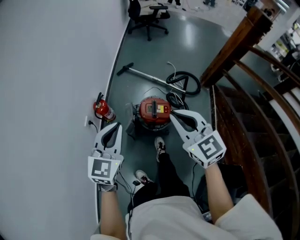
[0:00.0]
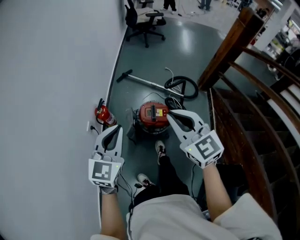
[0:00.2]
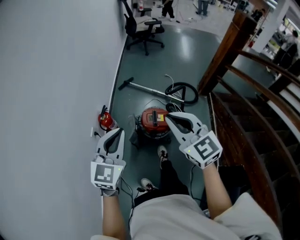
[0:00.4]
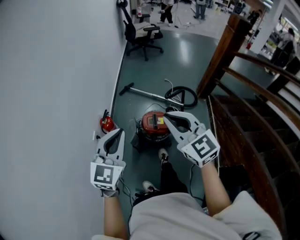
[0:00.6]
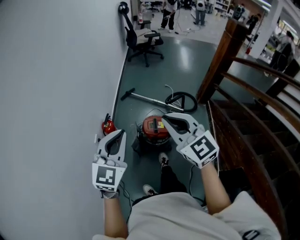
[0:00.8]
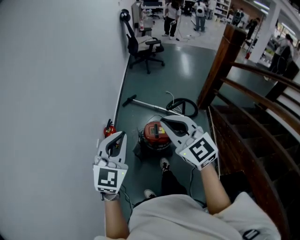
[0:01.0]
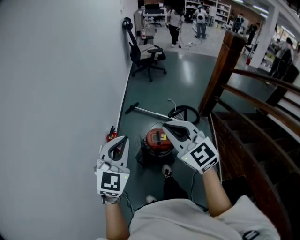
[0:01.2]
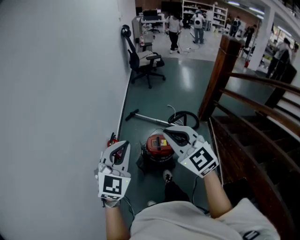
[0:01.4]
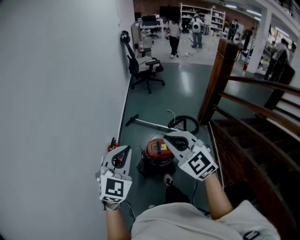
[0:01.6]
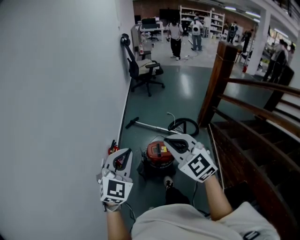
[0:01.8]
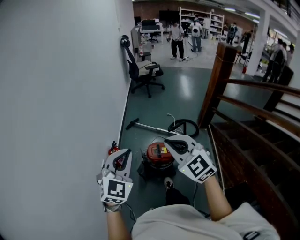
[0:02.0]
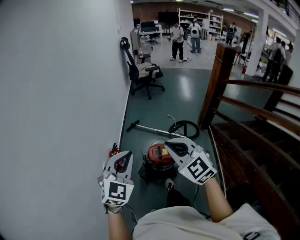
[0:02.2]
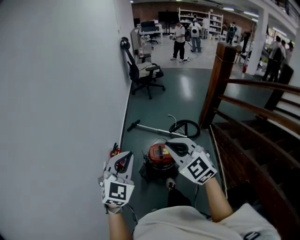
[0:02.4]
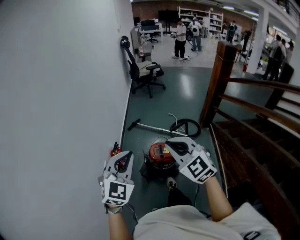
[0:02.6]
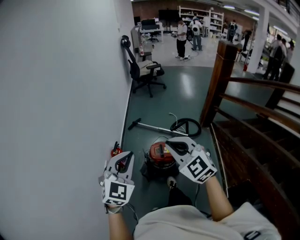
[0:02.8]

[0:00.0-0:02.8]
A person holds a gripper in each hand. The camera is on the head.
0:00.0 to 0:01.4: The grippers both shift upward and backward by roughly 20 cm. The left gripper swivels roughly 30 degrees.
0:01.4 to 0:02.8: The grippers make only small movements.

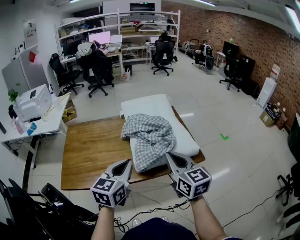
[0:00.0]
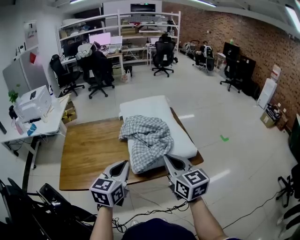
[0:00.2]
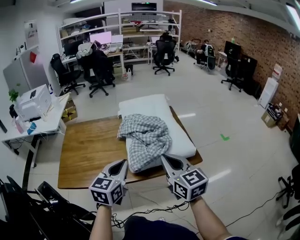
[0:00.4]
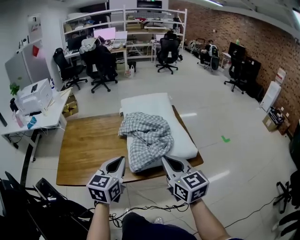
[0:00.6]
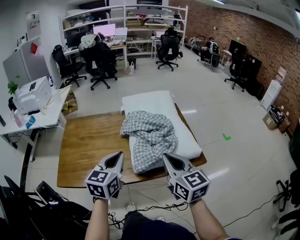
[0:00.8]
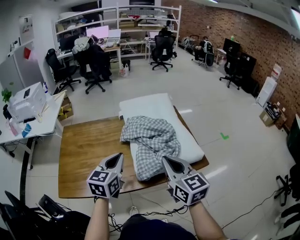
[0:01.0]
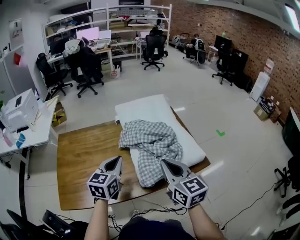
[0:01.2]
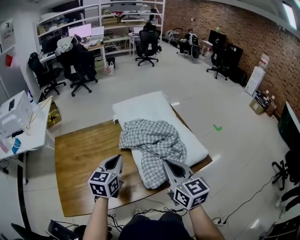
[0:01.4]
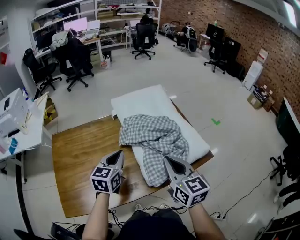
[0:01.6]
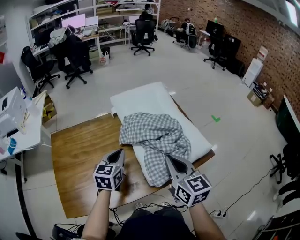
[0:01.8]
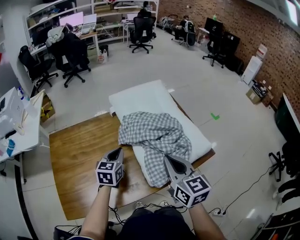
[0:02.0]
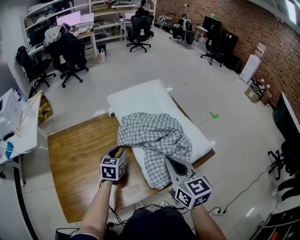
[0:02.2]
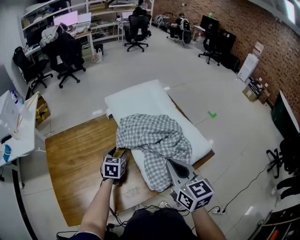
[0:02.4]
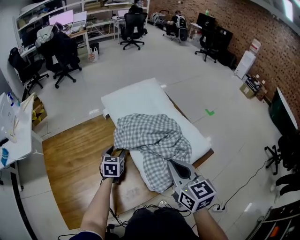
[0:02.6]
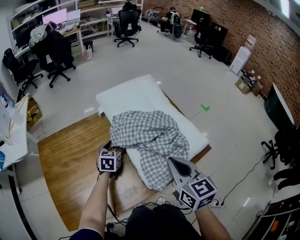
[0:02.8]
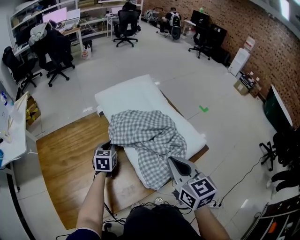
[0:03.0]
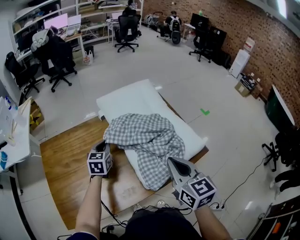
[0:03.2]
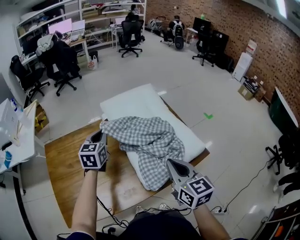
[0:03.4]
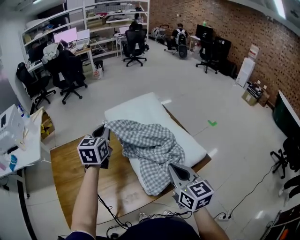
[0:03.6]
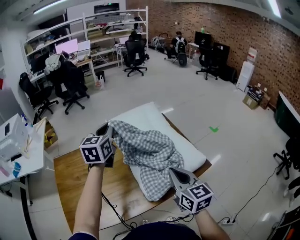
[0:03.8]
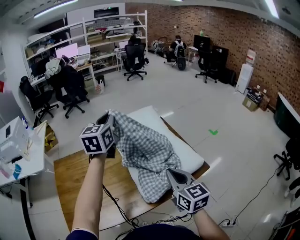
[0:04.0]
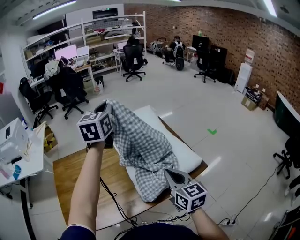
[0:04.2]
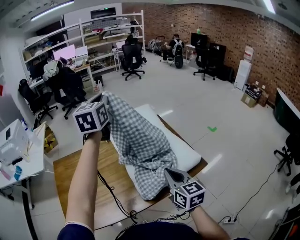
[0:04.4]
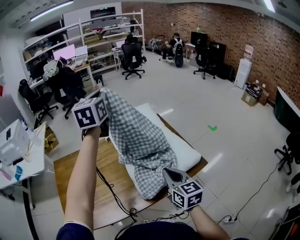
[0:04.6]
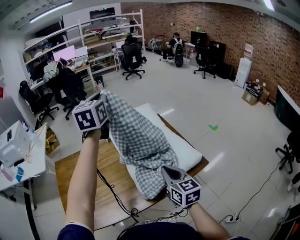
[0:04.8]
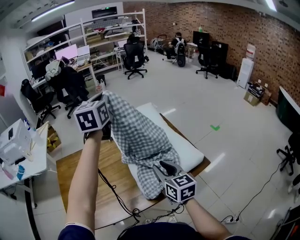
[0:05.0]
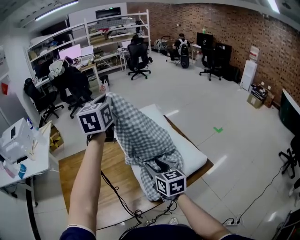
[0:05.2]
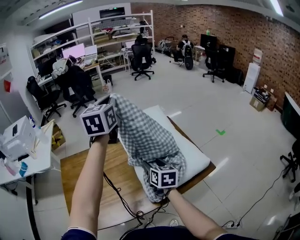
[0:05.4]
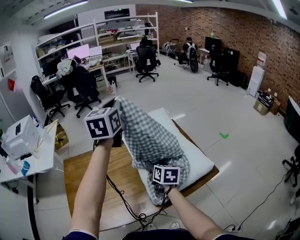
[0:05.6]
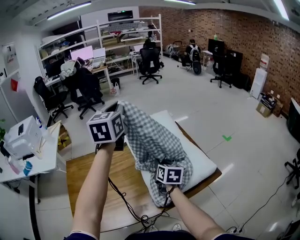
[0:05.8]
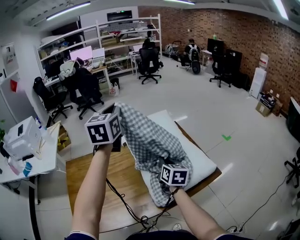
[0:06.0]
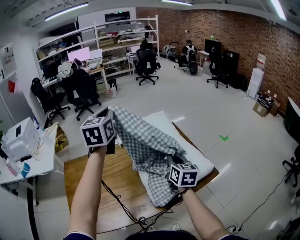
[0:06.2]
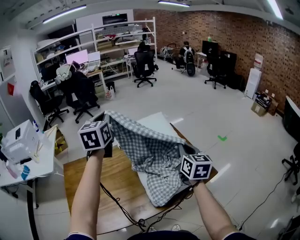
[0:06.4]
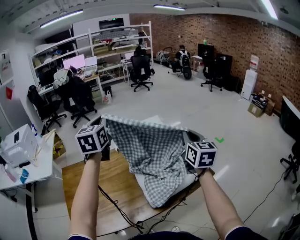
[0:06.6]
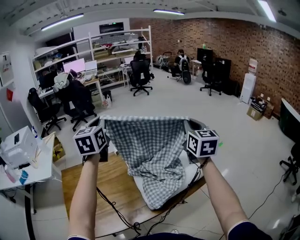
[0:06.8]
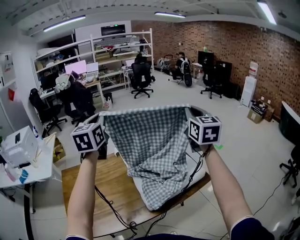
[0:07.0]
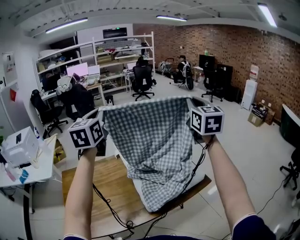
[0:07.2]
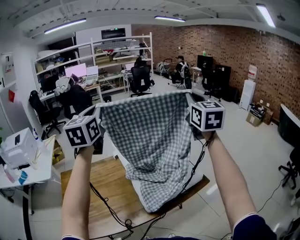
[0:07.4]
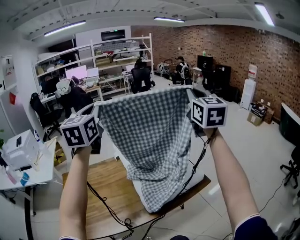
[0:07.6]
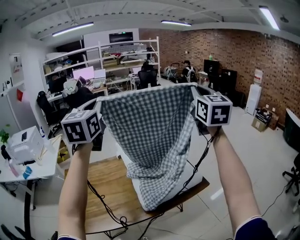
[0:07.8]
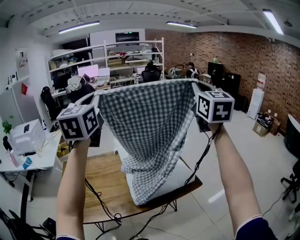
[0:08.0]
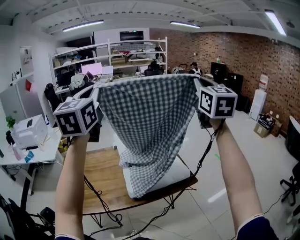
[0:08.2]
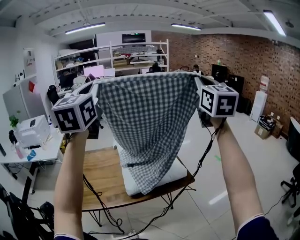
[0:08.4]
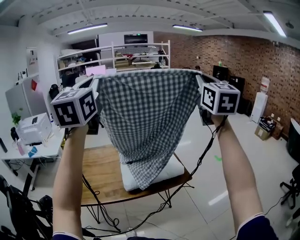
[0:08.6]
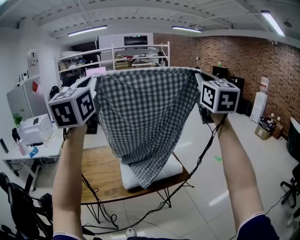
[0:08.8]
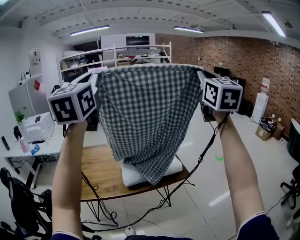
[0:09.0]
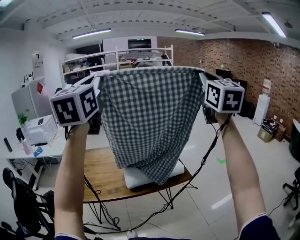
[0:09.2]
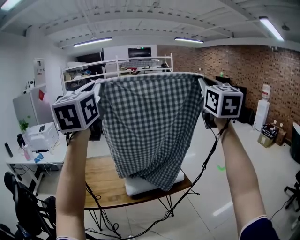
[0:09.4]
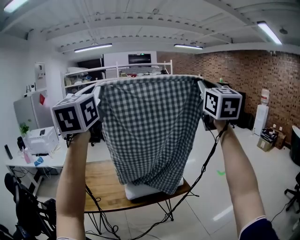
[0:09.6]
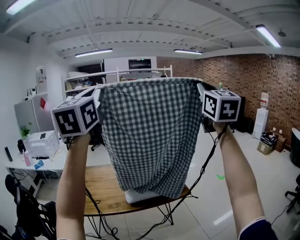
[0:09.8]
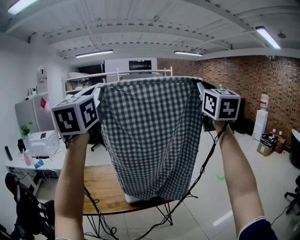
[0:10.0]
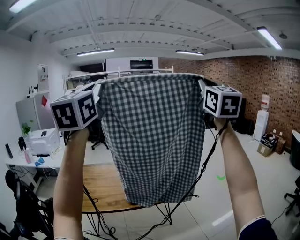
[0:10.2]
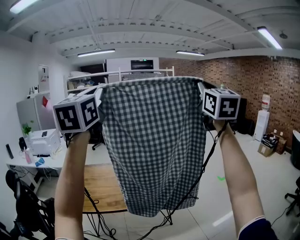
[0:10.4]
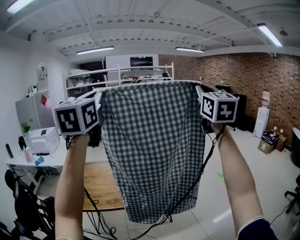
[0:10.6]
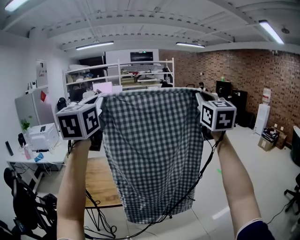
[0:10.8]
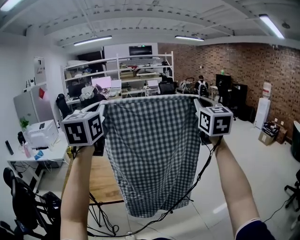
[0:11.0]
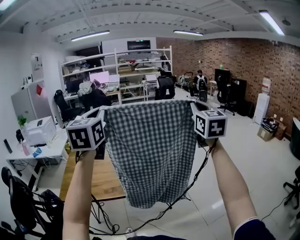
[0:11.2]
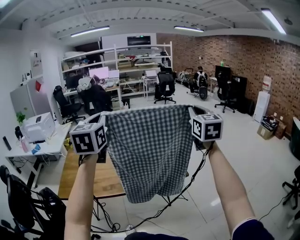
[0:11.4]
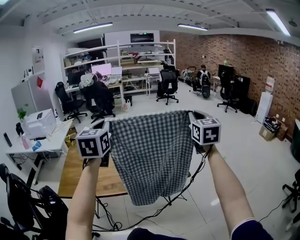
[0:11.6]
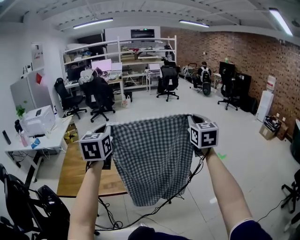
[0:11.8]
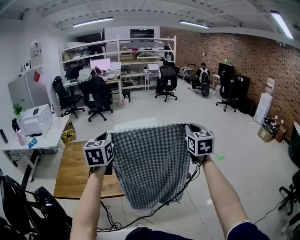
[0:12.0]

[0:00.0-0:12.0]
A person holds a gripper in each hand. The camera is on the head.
0:00.0 to 0:01.6: The right gripper heads forward and to the left, covering about 10 cm. The left gripper travels forward, downward and to the left by about 20 cm.
0:01.6 to 0:03.0: The left gripper is displaced downward and forward by some 20 cm, and opens, then closes again.
0:03.0 to 0:04.4: The left gripper shifts approximately 40 cm upward, and angles its fingers upward, by about 30 degrees.
0:04.4 to 0:06.0: The right gripper shifts some 15 cm forward, and opens, then closes again.
0:06.0 to 0:07.6: The right gripper goes roughly 40 cm upward and to the right, and tips its fingers upward by approximately 30 degrees. The left gripper shifts roughly 15 cm upward and backward.
0:07.6 to 0:09.0: The left gripper moves backward, upward and to the right, roughly 30 cm; the right gripper is displaced backward, to the right and upward by about 25 cm.
0:09.0 to 0:10.4: The right gripper travels upward by about 5 cm. Meanwhile the left gripper heads backward, covering roughly 5 cm.
0:10.4 to 0:12.0: The two grippers go roughly 40 cm downward and forward. The right gripper changes its angle by approximately 30 degrees; the left gripper turns by some 30 degrees.

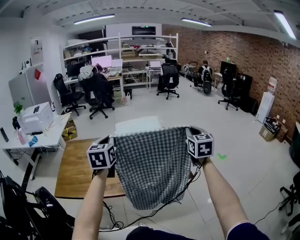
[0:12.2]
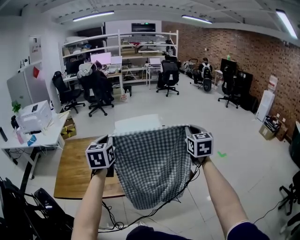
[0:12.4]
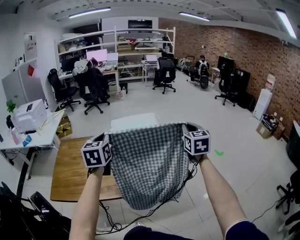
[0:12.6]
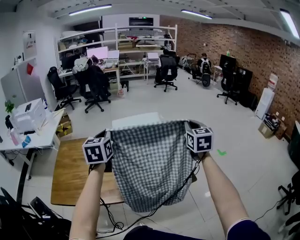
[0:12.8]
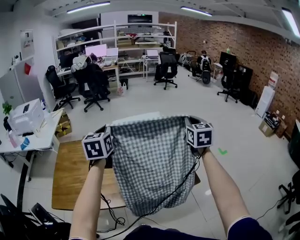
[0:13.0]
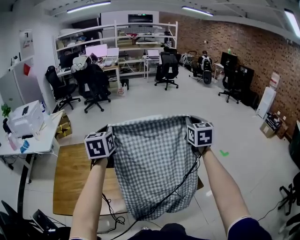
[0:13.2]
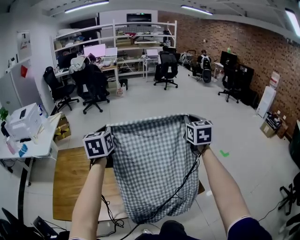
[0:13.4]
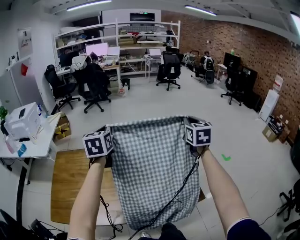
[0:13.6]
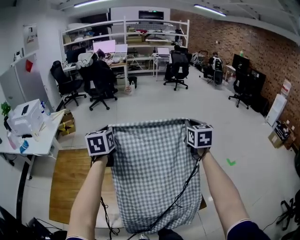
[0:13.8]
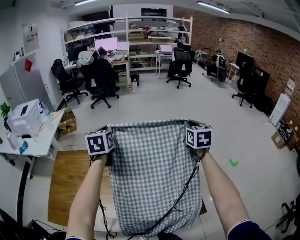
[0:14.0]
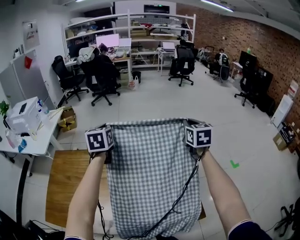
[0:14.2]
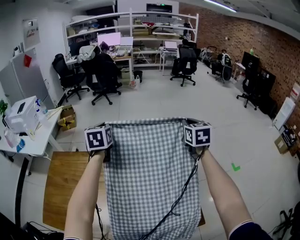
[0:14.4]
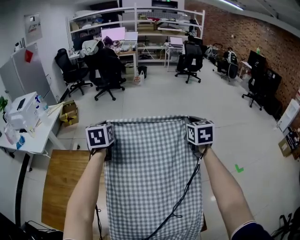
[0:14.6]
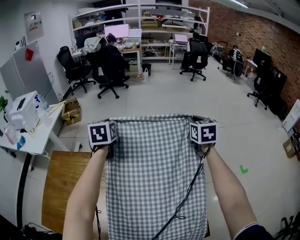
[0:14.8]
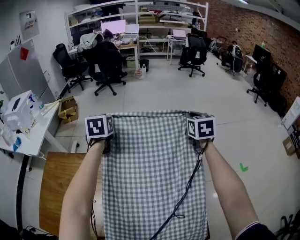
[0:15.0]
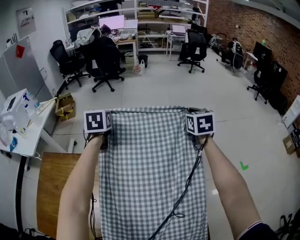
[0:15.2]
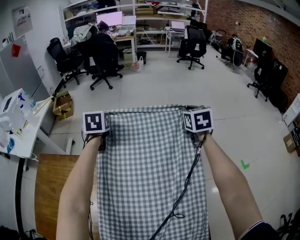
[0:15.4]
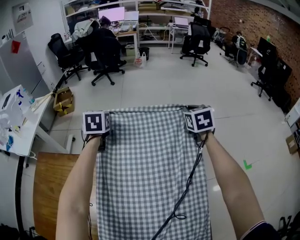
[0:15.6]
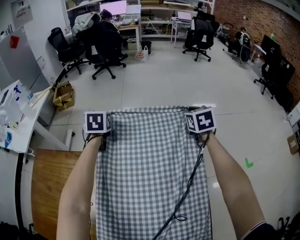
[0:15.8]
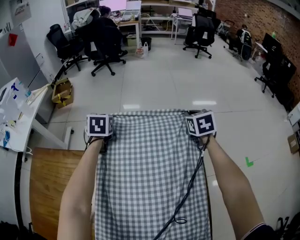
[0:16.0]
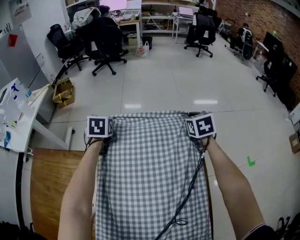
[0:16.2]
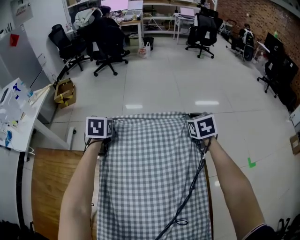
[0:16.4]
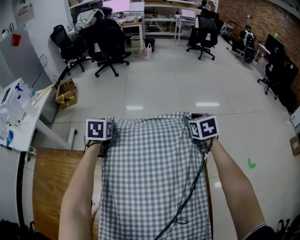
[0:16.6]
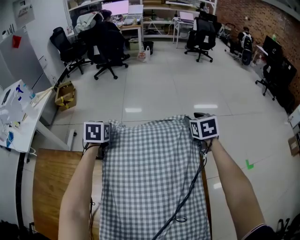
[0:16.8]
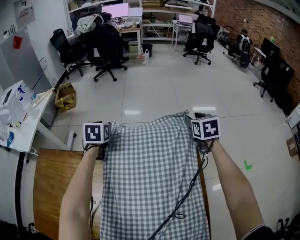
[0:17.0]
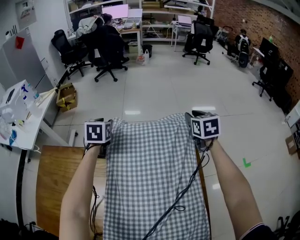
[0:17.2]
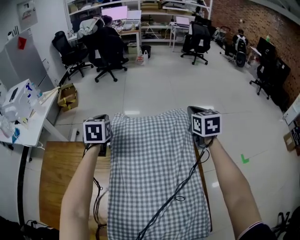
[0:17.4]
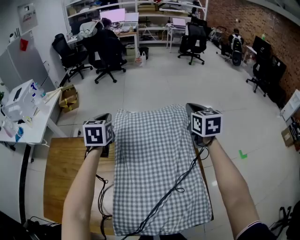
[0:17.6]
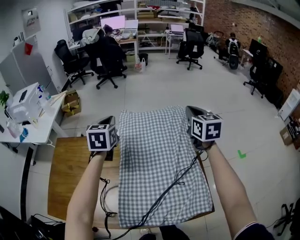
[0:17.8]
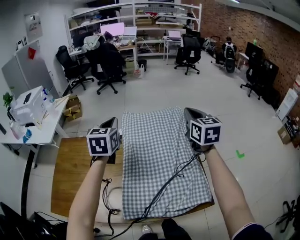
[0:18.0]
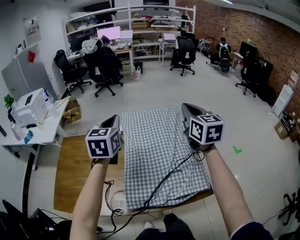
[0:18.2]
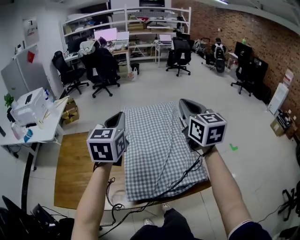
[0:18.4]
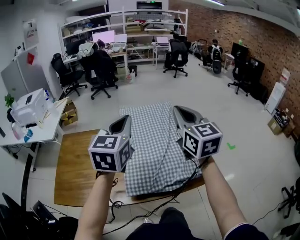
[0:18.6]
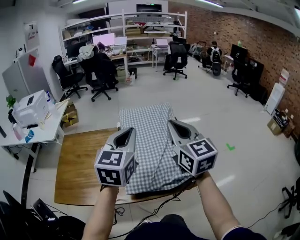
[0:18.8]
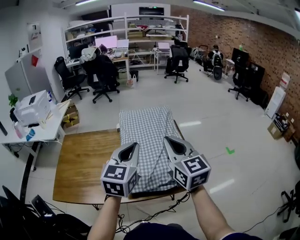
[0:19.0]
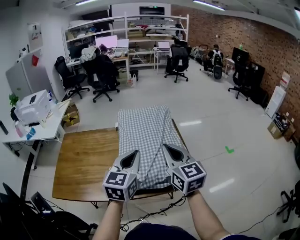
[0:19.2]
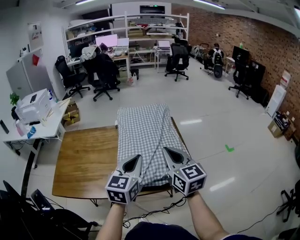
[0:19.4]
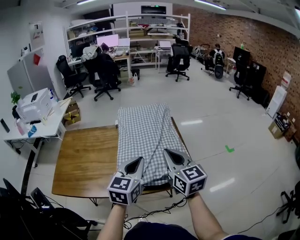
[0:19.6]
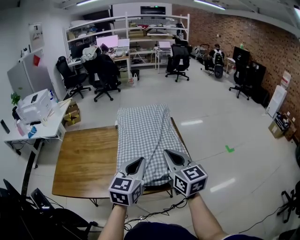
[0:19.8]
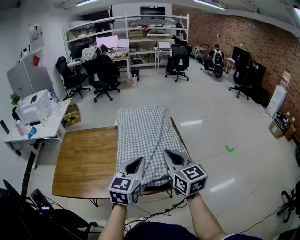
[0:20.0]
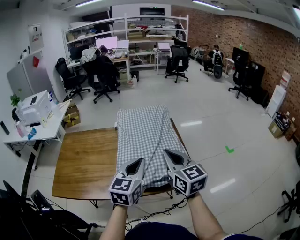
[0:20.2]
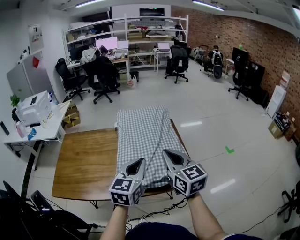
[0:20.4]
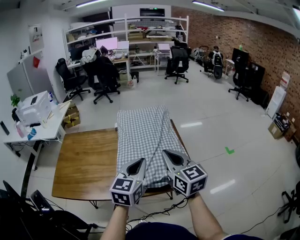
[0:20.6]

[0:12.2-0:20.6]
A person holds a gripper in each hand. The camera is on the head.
0:12.2 to 0:13.6: The two grippers go some 20 cm forward.
0:13.6 to 0:15.0: Both grippers move forward and downward, approximately 30 cm.
0:15.0 to 0:16.4: The left gripper heads downward, covering about 20 cm. Meanwhile the right gripper moves downward and forward, approximately 20 cm.
0:16.4 to 0:17.8: The right gripper shifts about 30 cm upward and backward, turns by roughly 30 degrees, and opens, then closes once more, while the left gripper is displaced backward and upward by some 30 cm, swivels some 20 degrees, and opens, then closes once more.
0:17.8 to 0:19.2: Both grippers move backward, about 35 cm. The left gripper rotates approximately 30 degrees.
0:19.2 to 0:20.6: The left gripper shifts by approximately 5 cm.
